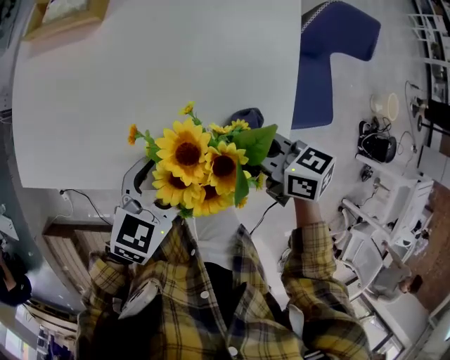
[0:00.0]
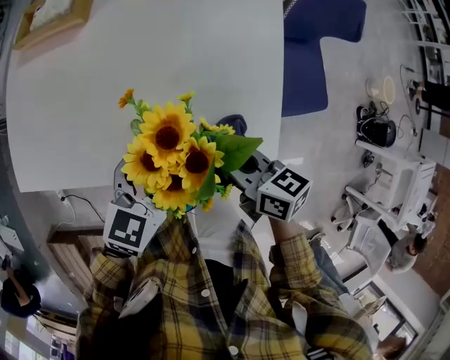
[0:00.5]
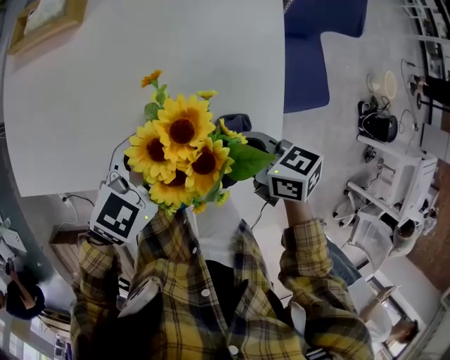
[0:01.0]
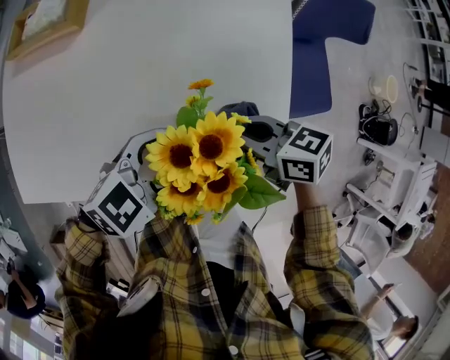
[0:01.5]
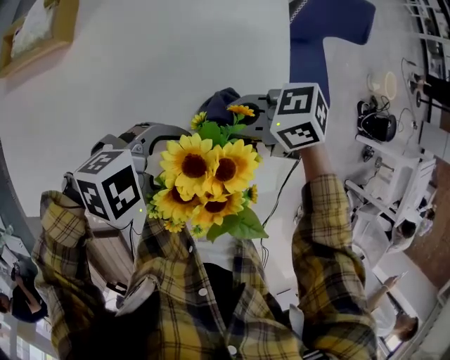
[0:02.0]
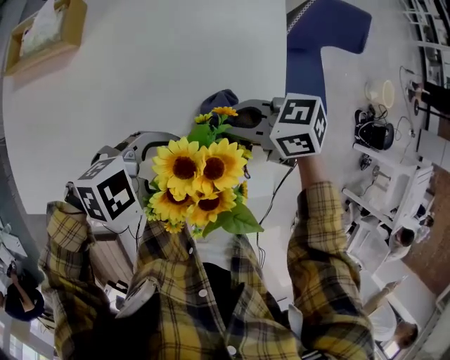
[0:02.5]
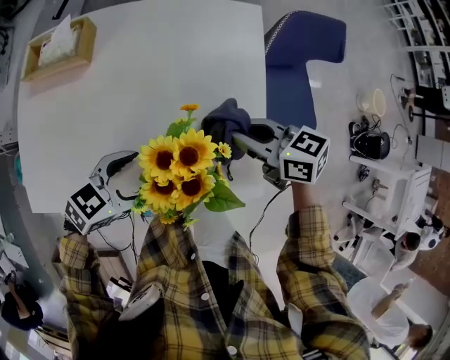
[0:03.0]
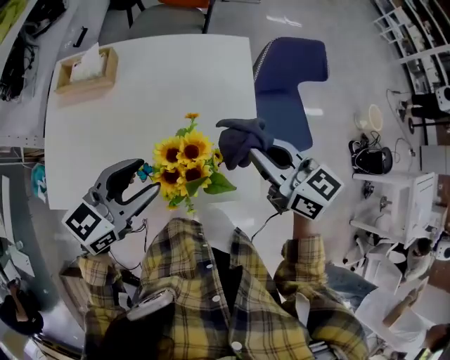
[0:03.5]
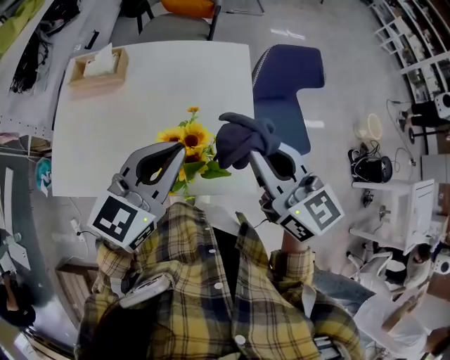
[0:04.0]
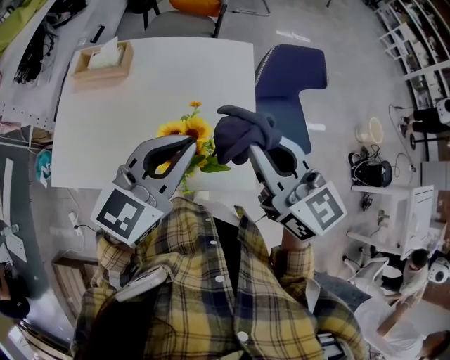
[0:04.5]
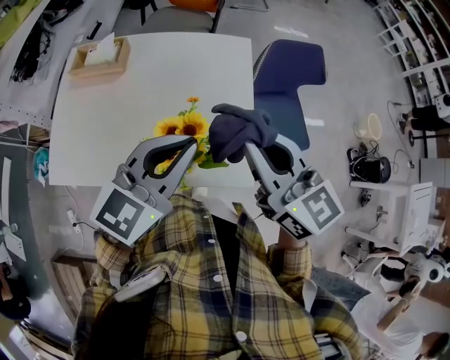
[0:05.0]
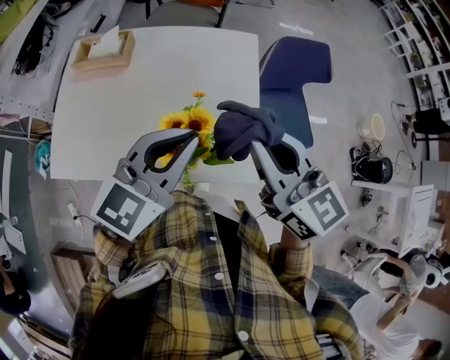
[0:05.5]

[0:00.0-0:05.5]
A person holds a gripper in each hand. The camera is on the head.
0:00.0 to 0:02.0: The right gripper turns by some 30 degrees, while the left gripper swivels some 60 degrees.
0:02.0 to 0:03.5: The two grippers go some 15 cm upward. The right gripper swivels roughly 50 degrees. Meanwhile the left gripper changes its angle by about 60 degrees, and closes its fingers.
0:03.5 to 0:05.5: The left gripper goes some 15 cm upward and to the right, and closes up. The right gripper is displaced upward by approximately 10 cm.

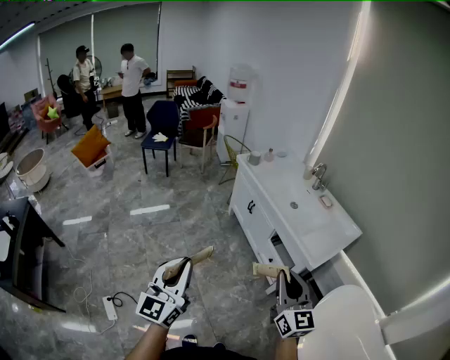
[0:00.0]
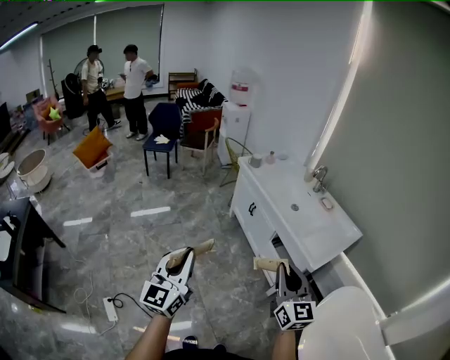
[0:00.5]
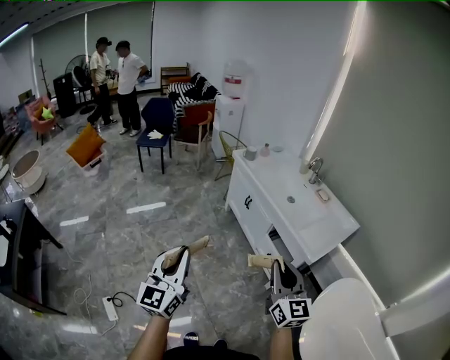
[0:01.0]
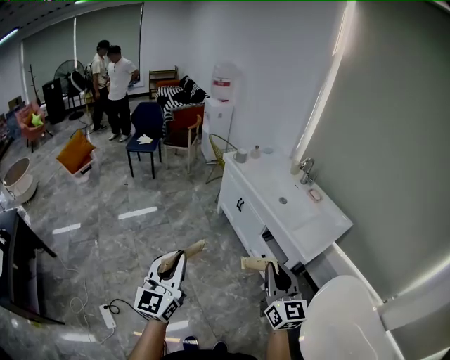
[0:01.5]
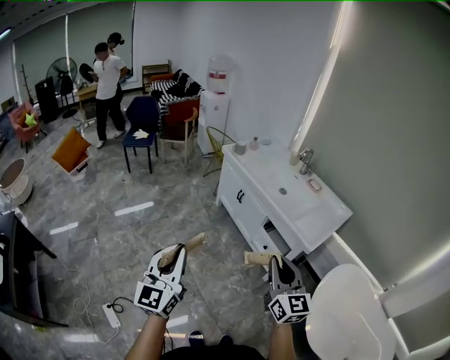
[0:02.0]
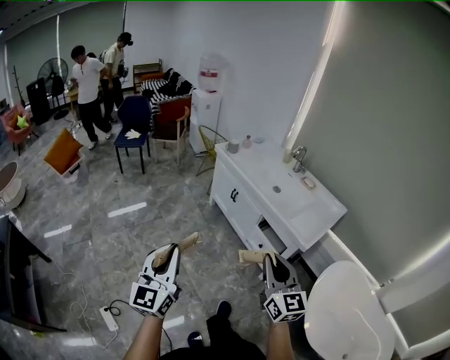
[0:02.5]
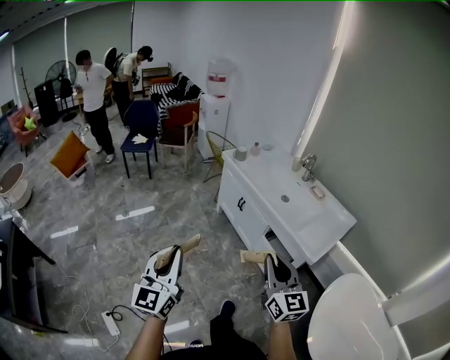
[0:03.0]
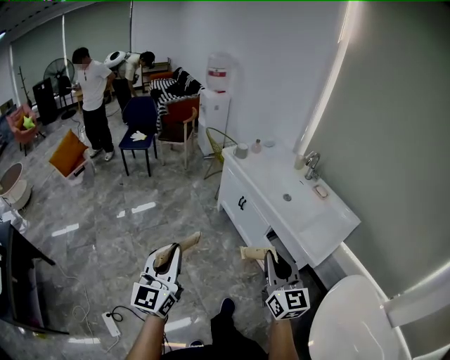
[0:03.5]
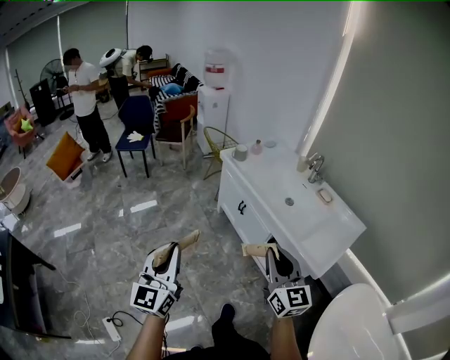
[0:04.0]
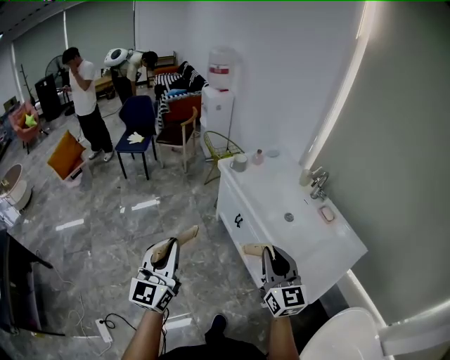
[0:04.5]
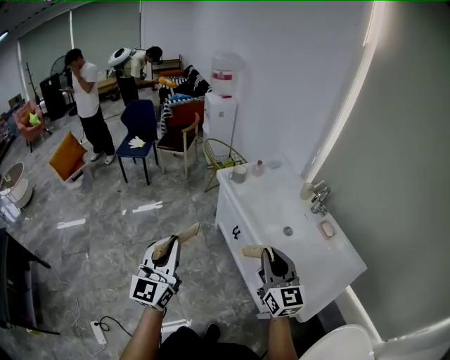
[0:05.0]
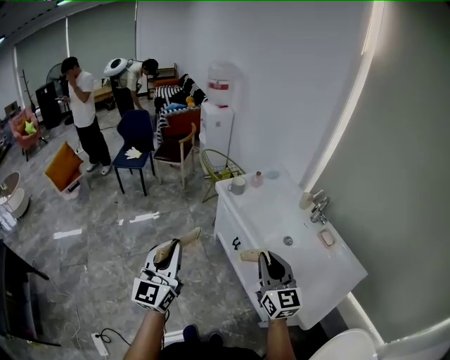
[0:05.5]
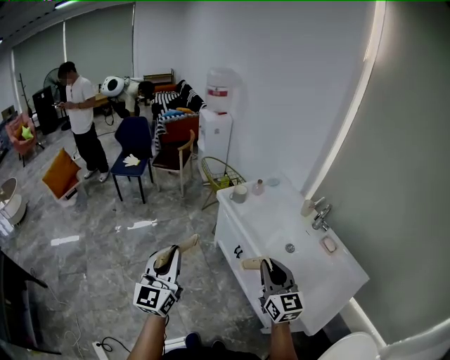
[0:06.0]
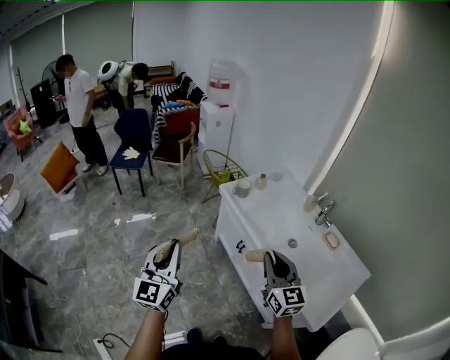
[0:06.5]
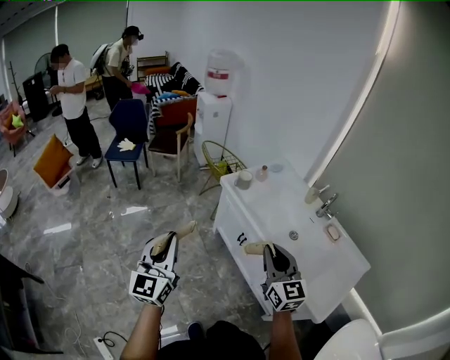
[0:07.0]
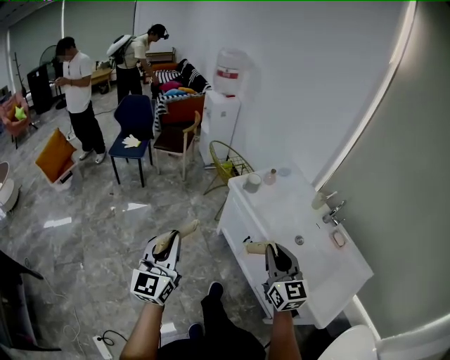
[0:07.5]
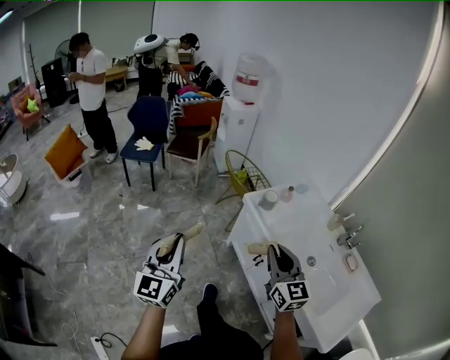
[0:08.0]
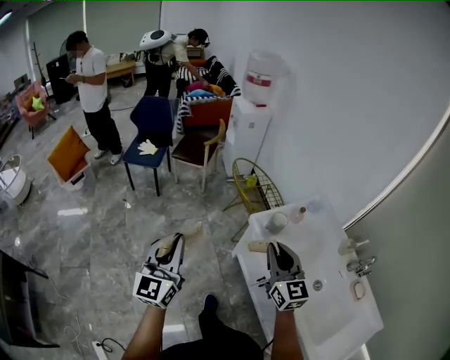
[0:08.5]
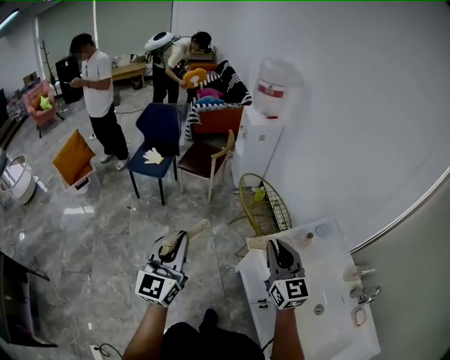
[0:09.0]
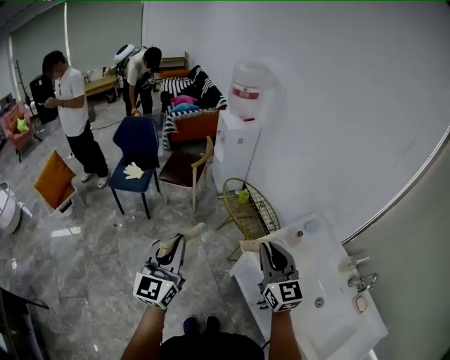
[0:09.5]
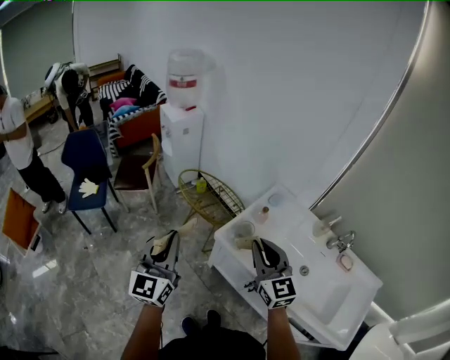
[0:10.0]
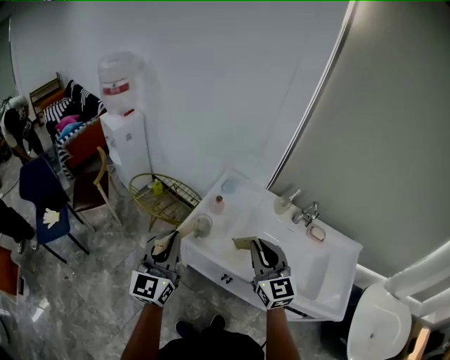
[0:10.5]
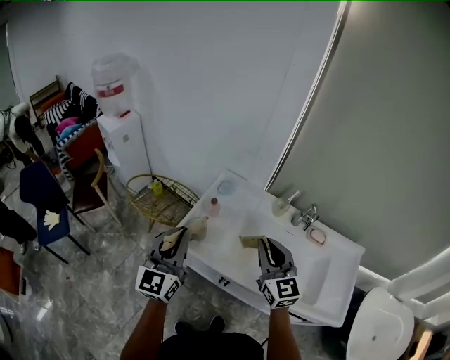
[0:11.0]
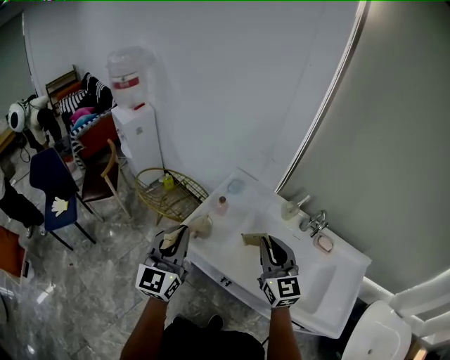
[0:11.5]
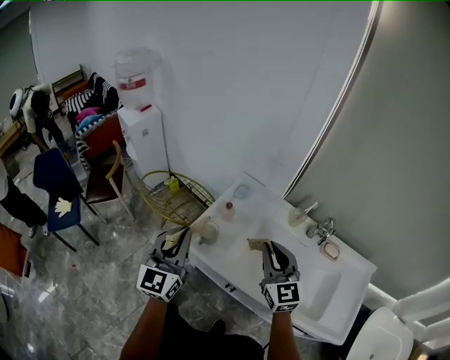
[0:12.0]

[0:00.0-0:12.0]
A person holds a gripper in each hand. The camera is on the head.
0:00.0 to 0:02.0: The right gripper goes some 5 cm to the left. The left gripper shifts by about 5 cm.
0:02.0 to 0:04.0: The grippers both shift forward by roughly 20 cm.
0:04.0 to 0:06.0: The two grippers go about 25 cm forward.
0:06.0 to 0:08.0: Both grippers move forward and to the left, about 20 cm.
0:08.0 to 0:10.0: Both grippers move forward, roughly 30 cm.
0:10.0 to 0:12.0: The left gripper shifts roughly 20 cm to the right and forward. Meanwhile the right gripper goes some 20 cm to the right.

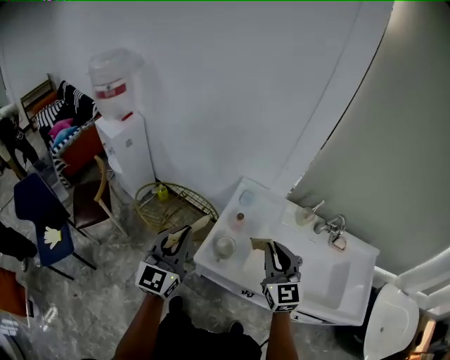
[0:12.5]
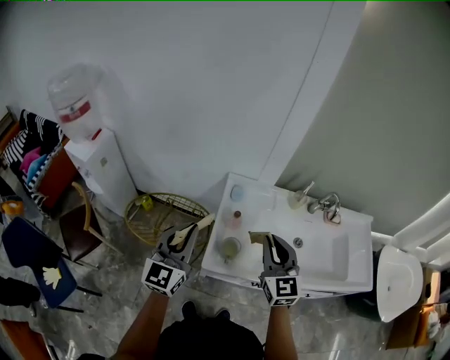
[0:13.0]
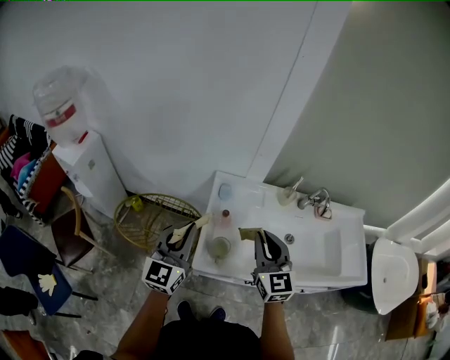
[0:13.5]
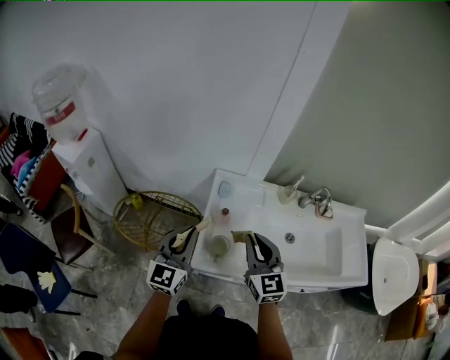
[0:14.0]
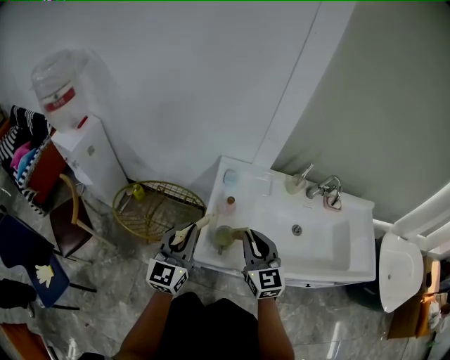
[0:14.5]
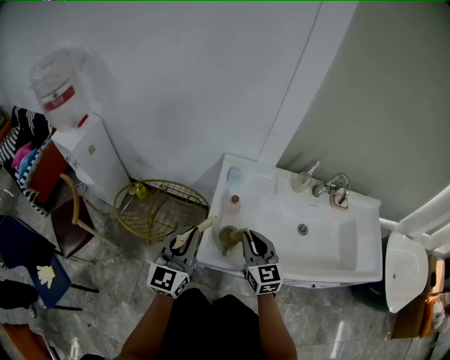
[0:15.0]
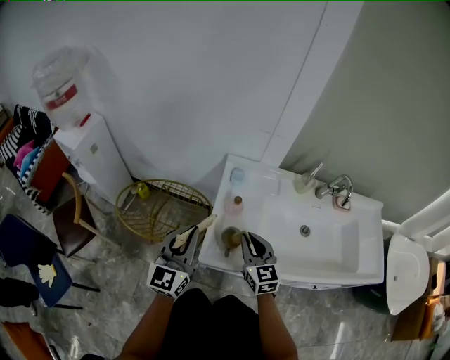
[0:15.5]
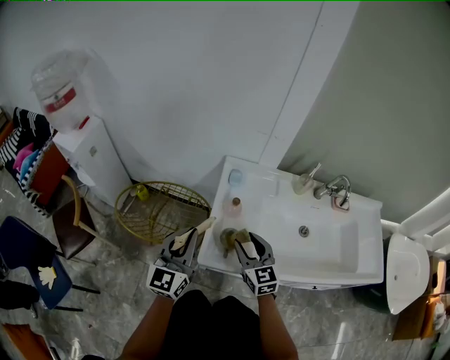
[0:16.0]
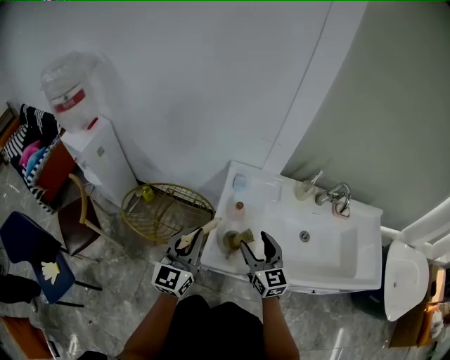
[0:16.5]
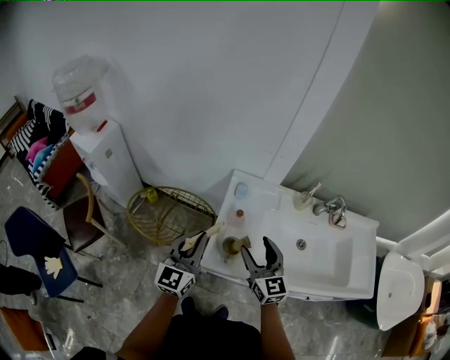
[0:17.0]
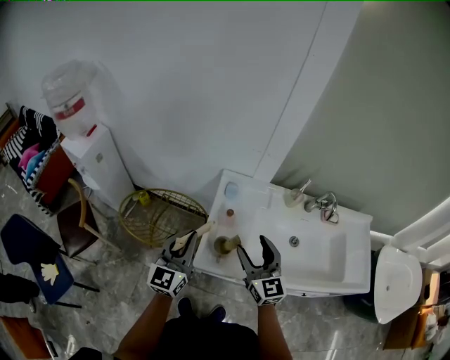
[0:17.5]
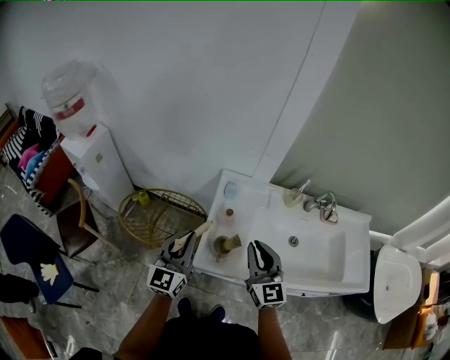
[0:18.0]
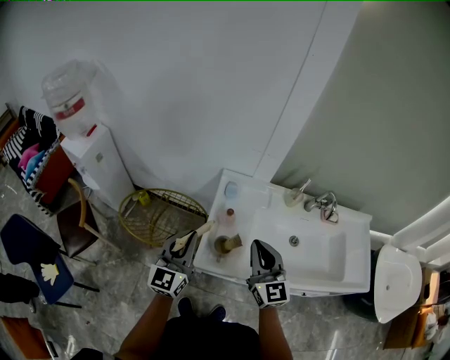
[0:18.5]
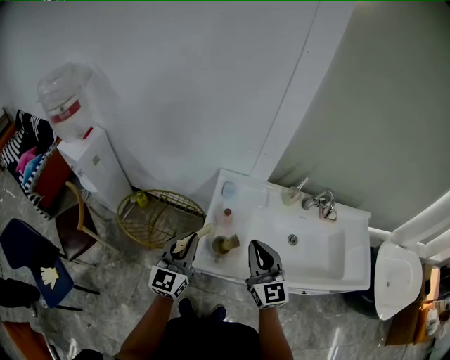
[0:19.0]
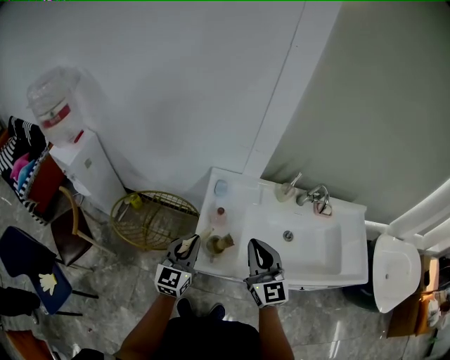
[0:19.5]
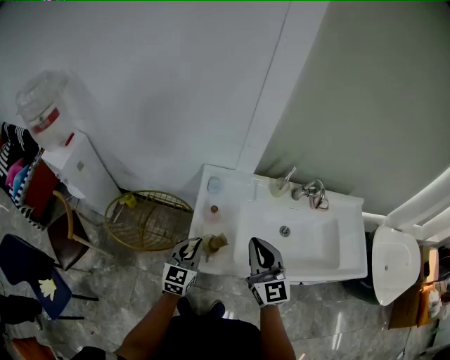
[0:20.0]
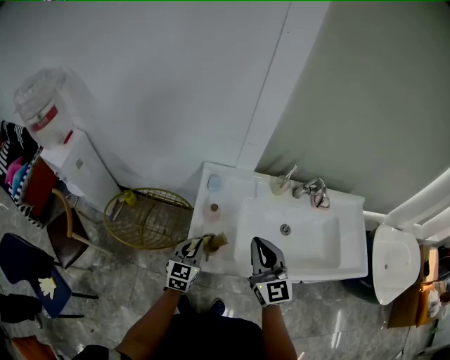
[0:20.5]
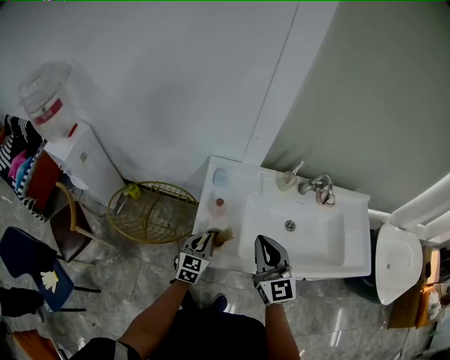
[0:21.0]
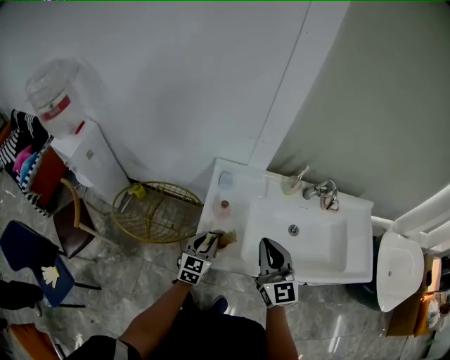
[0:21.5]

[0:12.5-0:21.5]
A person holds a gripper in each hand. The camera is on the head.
0:12.5 to 0:14.5: The right gripper is displaced downward and to the left by some 10 cm. Meanwhile the left gripper goes some 15 cm downward and forward.
0:14.5 to 0:17.0: The right gripper moves about 10 cm downward and comes back, and opens up.
0:17.0 to 0:19.5: The right gripper moves upward, roughly 5 cm, and closes up, while the left gripper changes place by about 5 cm.
0:19.5 to 0:21.5: The left gripper moves downward, approximately 15 cm.
